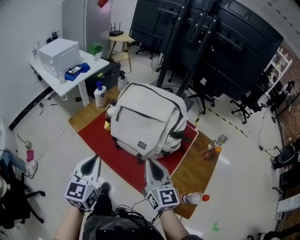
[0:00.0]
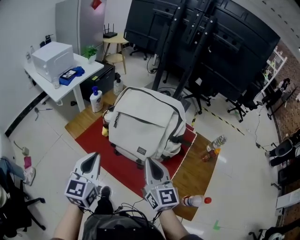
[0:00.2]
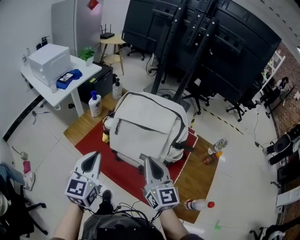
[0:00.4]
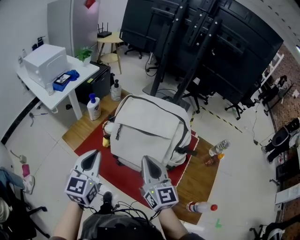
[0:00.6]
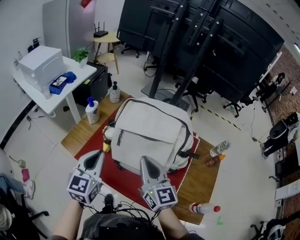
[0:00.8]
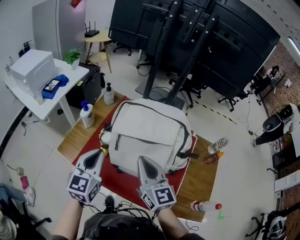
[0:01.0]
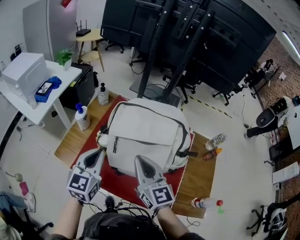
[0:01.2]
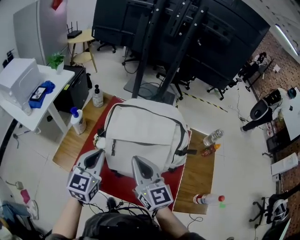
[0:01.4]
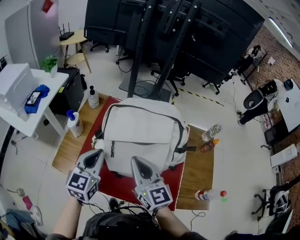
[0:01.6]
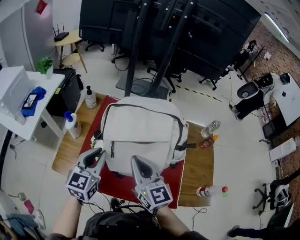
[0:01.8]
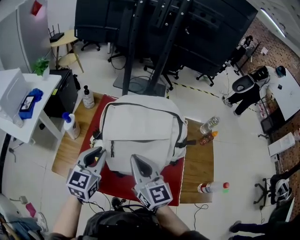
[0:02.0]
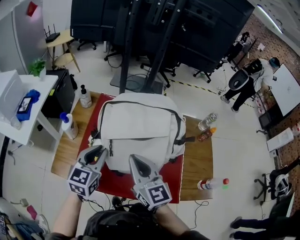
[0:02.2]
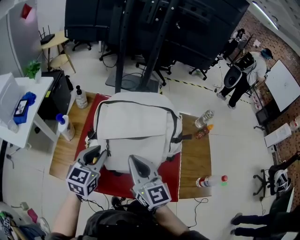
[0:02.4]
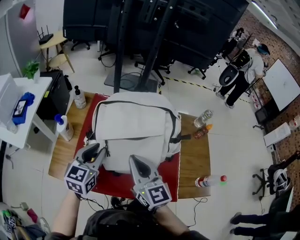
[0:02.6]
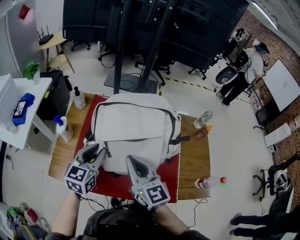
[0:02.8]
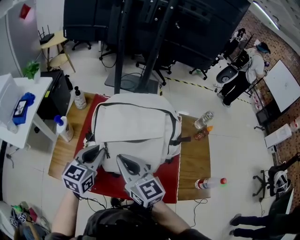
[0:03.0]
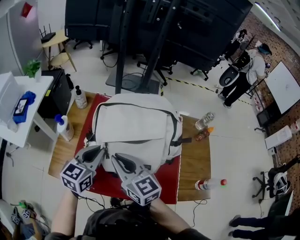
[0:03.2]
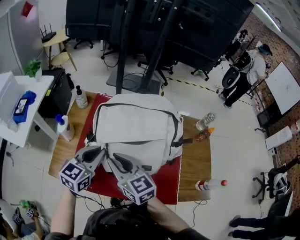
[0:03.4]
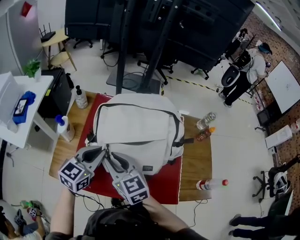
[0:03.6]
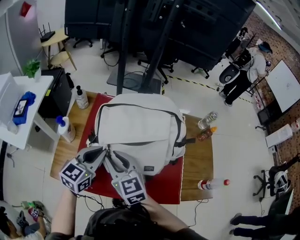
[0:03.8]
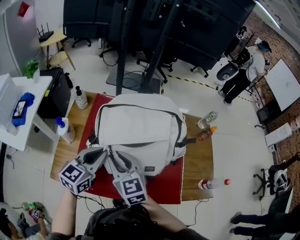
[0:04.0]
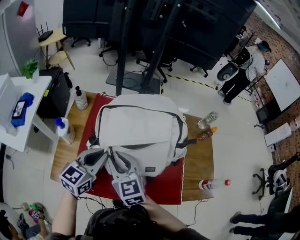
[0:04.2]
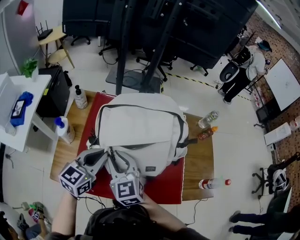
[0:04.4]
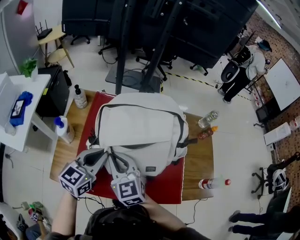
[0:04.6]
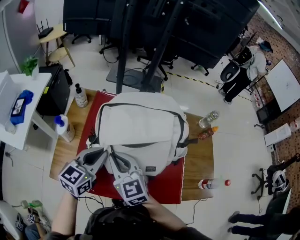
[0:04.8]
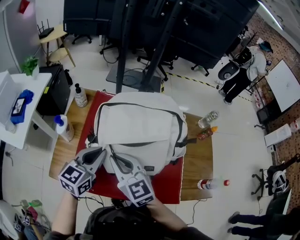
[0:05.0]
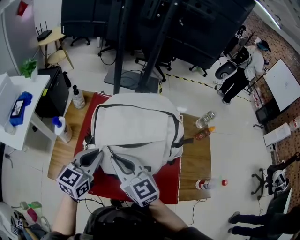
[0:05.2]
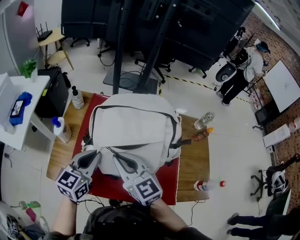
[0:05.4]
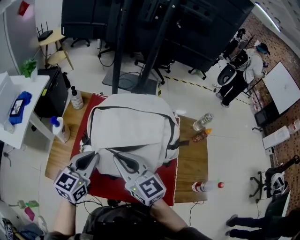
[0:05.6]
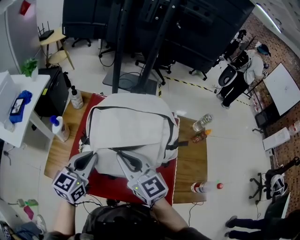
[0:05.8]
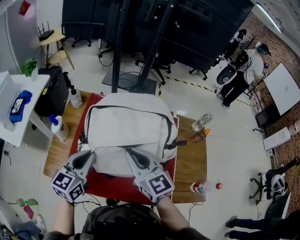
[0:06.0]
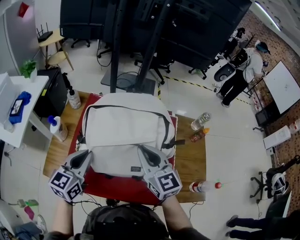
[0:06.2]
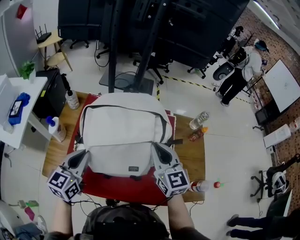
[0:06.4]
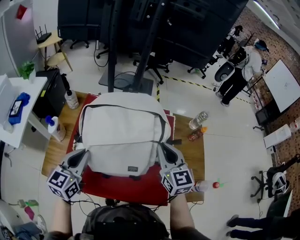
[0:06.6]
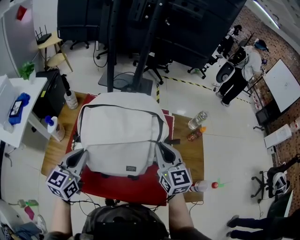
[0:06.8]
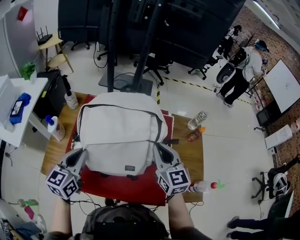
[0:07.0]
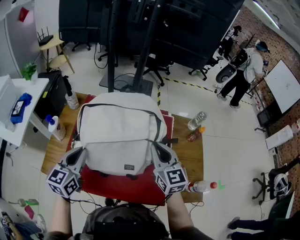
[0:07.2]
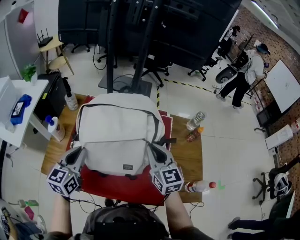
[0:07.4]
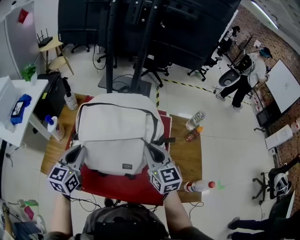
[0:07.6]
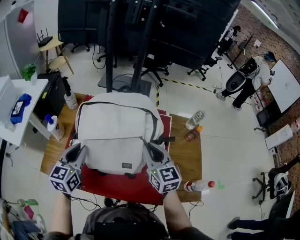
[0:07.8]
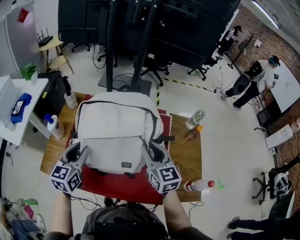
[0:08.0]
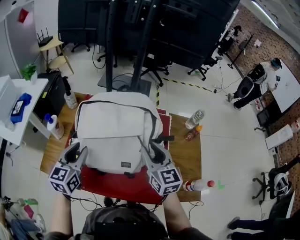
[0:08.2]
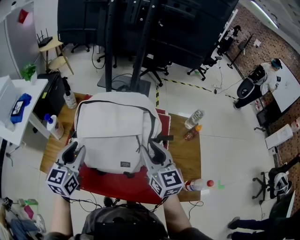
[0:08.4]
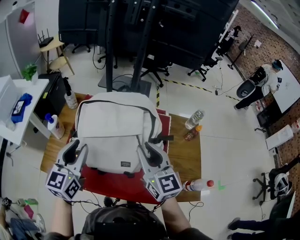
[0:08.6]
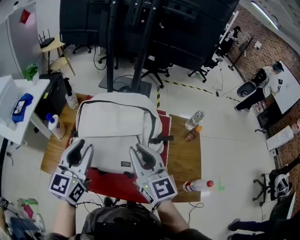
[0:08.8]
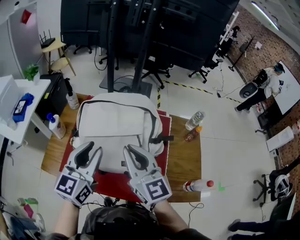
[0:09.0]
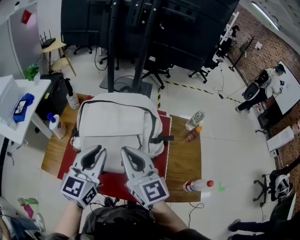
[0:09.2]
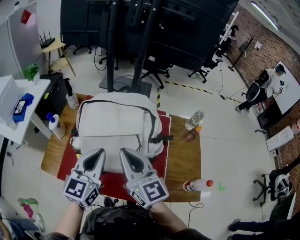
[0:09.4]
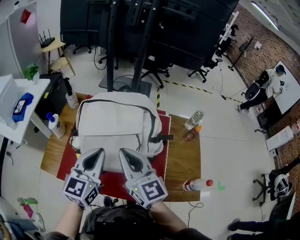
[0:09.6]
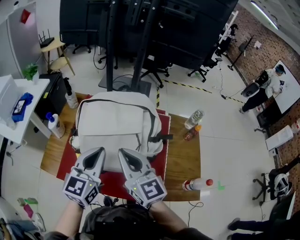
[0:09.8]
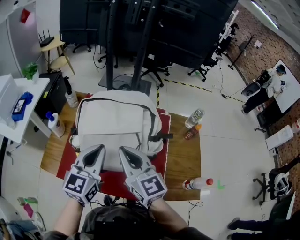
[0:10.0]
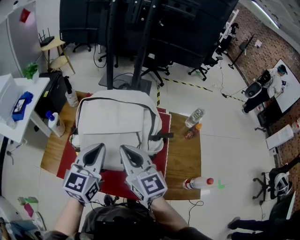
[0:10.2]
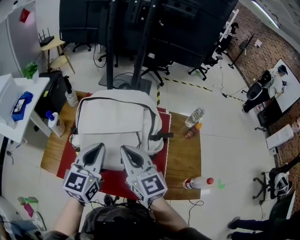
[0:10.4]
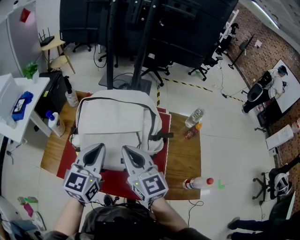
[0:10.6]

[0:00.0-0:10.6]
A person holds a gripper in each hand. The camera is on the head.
0:00.0 to 0:01.6: The right gripper is displaced forward and to the left by about 25 cm. The left gripper heads forward, covering roughly 25 cm, and changes its angle by some 30 degrees.
0:01.6 to 0:03.0: The left gripper ends up about 5 cm from where it was.
0:03.0 to 0:04.6: The right gripper travels to the left and downward by about 10 cm, and swivels approximately 20 degrees.
0:04.6 to 0:06.0: The right gripper goes roughly 15 cm to the right and upward.
0:06.0 to 0:07.6: The right gripper travels to the right by roughly 15 cm.
0:07.6 to 0:09.0: The left gripper is displaced upward and to the right by roughly 15 cm, and opens. Meanwhile the right gripper is displaced upward, to the left and backward by approximately 15 cm.
0:09.0 to 0:10.6: The left gripper closes.

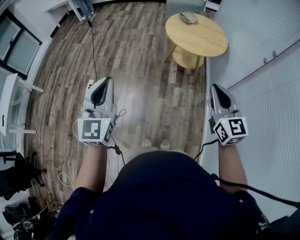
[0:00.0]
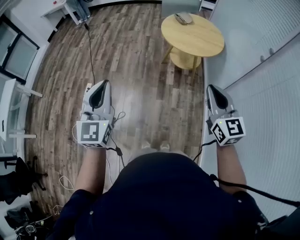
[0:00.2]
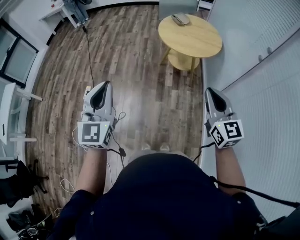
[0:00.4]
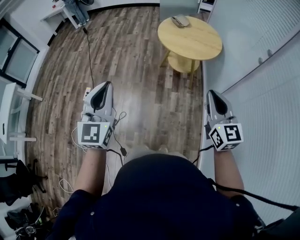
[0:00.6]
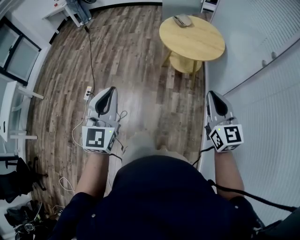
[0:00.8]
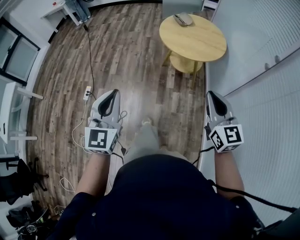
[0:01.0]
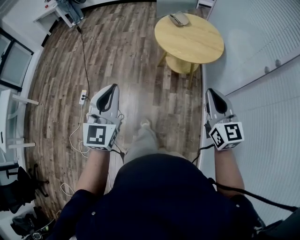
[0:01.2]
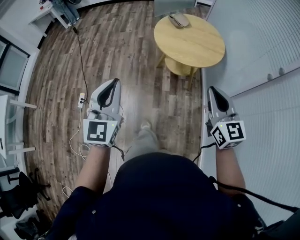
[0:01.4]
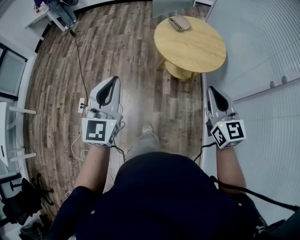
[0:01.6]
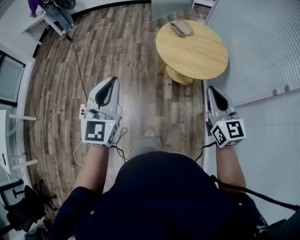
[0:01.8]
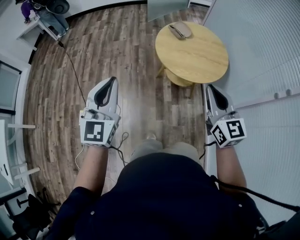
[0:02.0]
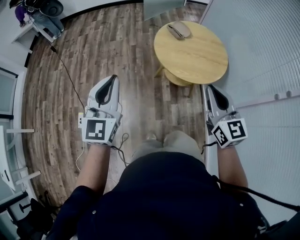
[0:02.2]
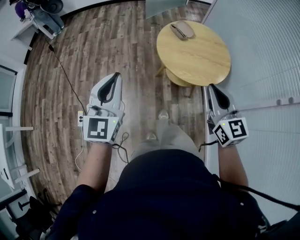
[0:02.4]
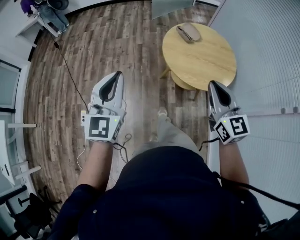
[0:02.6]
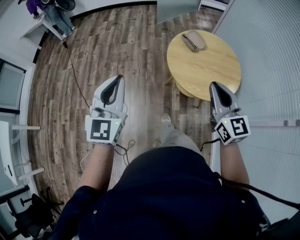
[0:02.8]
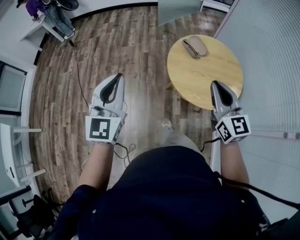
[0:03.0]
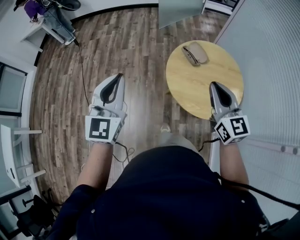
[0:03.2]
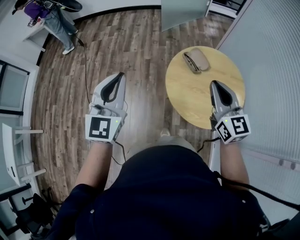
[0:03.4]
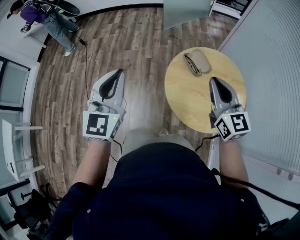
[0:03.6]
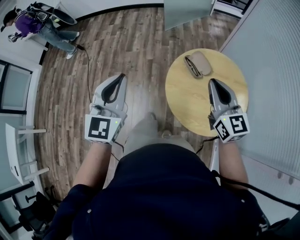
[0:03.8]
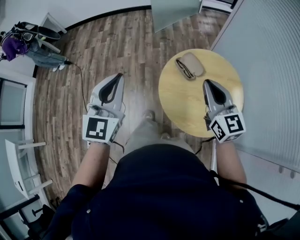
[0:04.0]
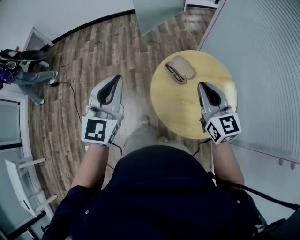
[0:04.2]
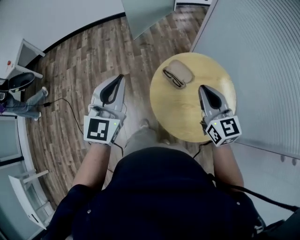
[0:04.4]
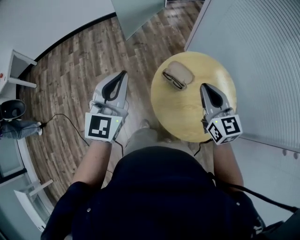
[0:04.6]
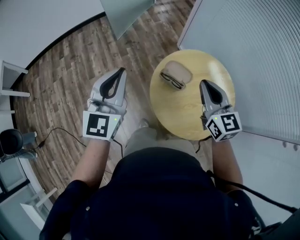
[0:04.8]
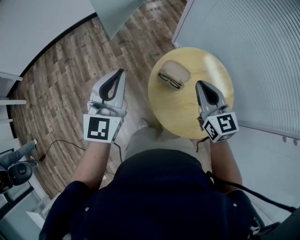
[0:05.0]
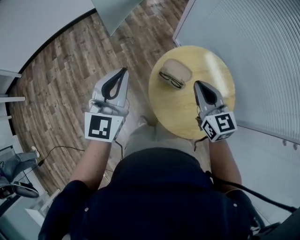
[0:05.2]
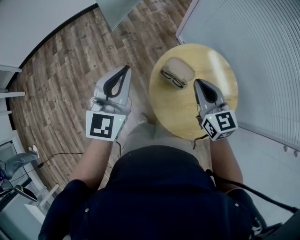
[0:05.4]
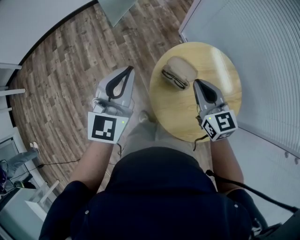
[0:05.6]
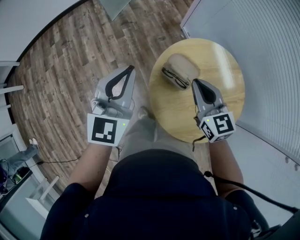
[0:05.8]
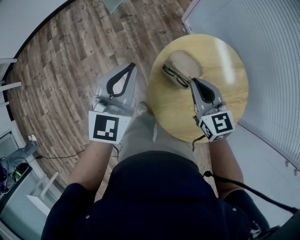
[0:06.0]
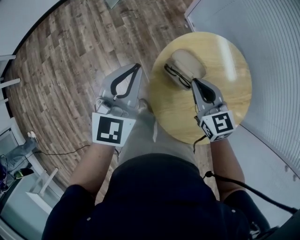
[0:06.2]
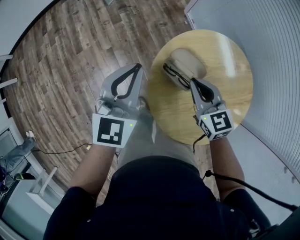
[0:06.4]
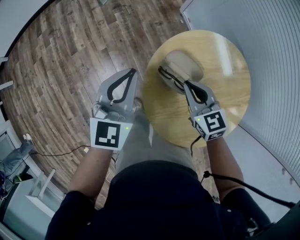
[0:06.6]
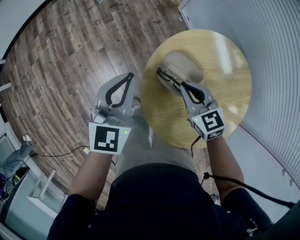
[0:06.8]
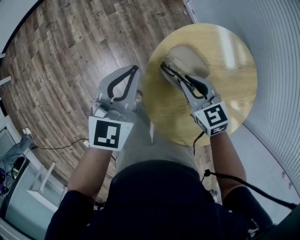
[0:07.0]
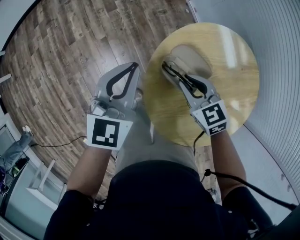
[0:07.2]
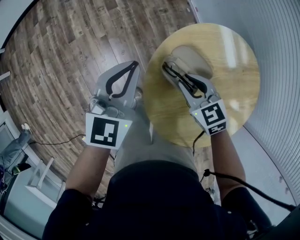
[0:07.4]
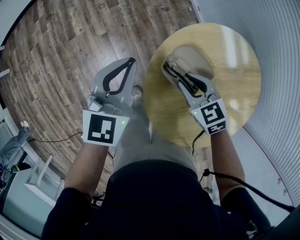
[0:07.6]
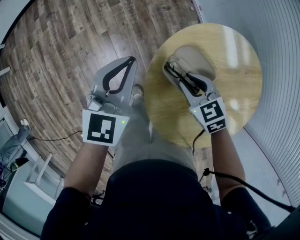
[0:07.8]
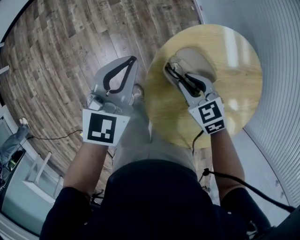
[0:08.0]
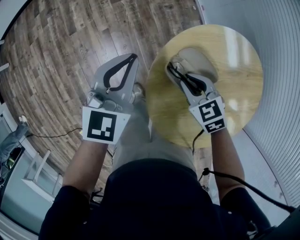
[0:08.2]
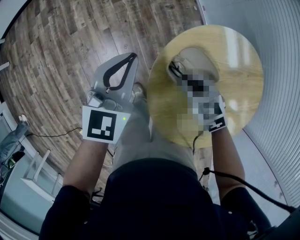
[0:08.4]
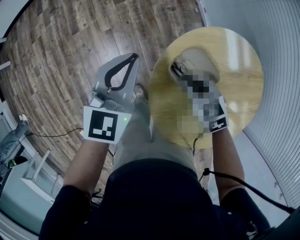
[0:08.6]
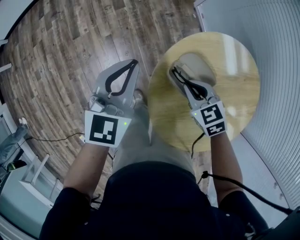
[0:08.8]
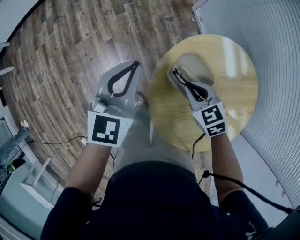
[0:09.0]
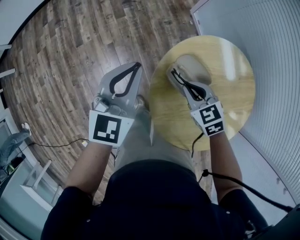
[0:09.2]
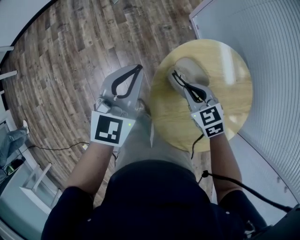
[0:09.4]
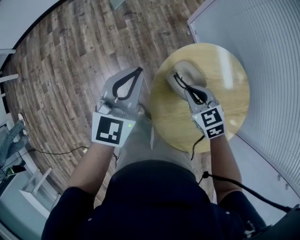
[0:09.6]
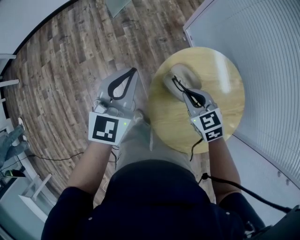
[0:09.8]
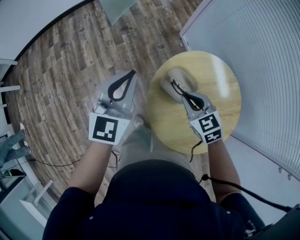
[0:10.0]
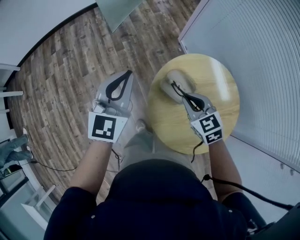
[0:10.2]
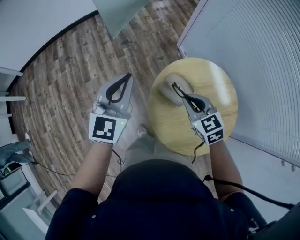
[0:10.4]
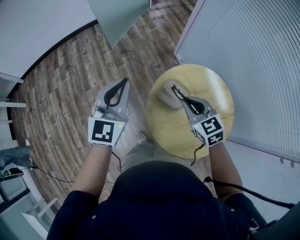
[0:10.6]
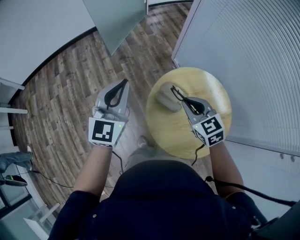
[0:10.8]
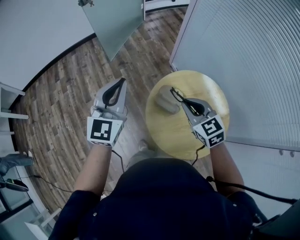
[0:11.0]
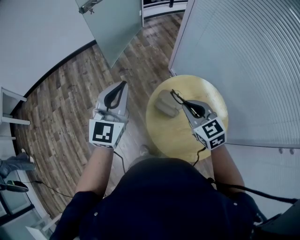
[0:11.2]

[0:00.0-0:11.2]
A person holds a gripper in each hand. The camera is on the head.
0:00.0 to 0:01.6: Both grippers travel together forward, about 25 cm.
0:01.6 to 0:03.2: Both grippers move forward, roughly 35 cm.
0:03.2 to 0:04.8: The left gripper ends up approximately 35 cm from where it was, and rotates approximately 30 degrees. The right gripper shifts by approximately 25 cm, and changes its angle by some 20 degrees.
0:04.8 to 0:06.4: Both grippers move downward and forward, some 25 cm. The right gripper swivels about 20 degrees.
0:06.4 to 0:08.0: The two grippers go approximately 10 cm downward. The right gripper swivels approximately 30 degrees, and opens.
0:08.0 to 0:09.6: Both grippers move upward, about 10 cm.
0:09.6 to 0:11.2: The two grippers go about 20 cm upward. The right gripper turns by approximately 20 degrees.

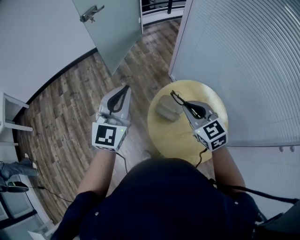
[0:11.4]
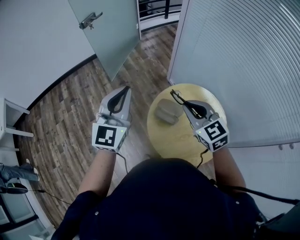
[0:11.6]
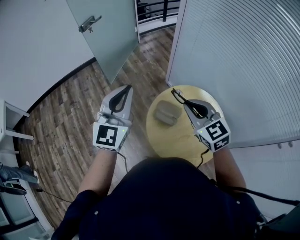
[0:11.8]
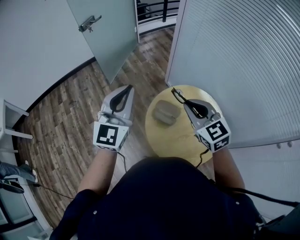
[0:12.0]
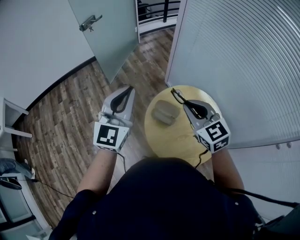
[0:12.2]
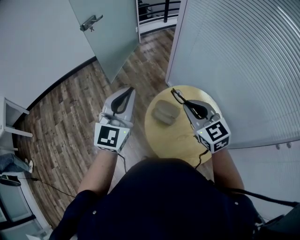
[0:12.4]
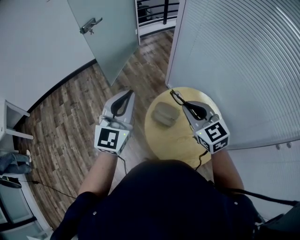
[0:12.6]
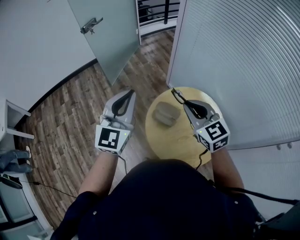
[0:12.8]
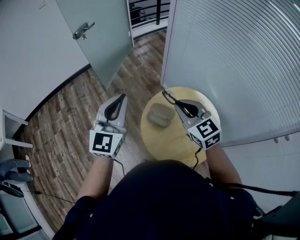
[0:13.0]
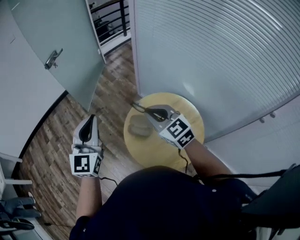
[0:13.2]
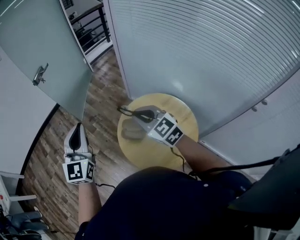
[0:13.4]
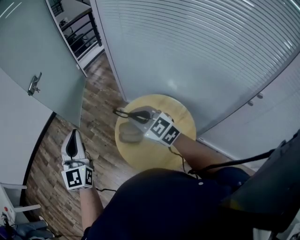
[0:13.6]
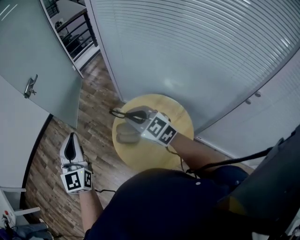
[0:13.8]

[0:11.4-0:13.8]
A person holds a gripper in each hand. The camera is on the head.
0:11.4 to 0:12.6: The left gripper changes place by roughly 5 cm; the right gripper shifts about 5 cm upward.
0:12.6 to 0:13.8: The grippers make only small movements.
